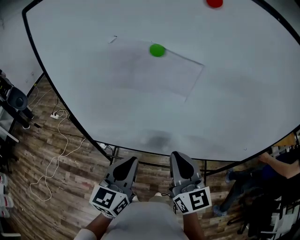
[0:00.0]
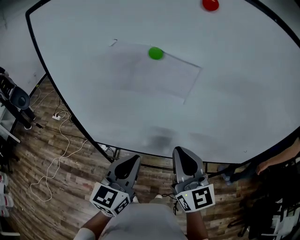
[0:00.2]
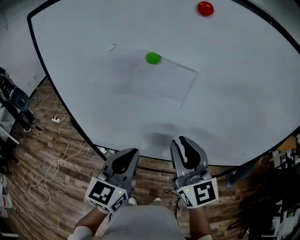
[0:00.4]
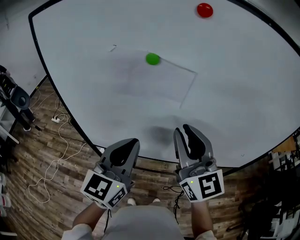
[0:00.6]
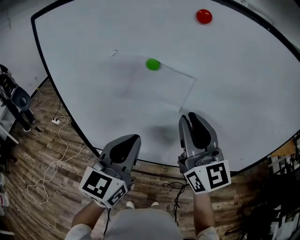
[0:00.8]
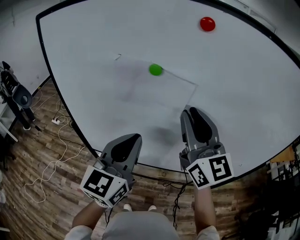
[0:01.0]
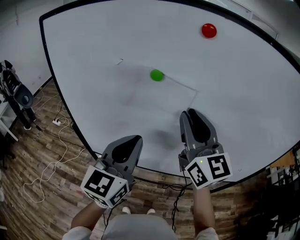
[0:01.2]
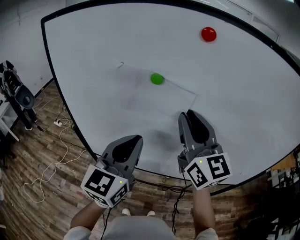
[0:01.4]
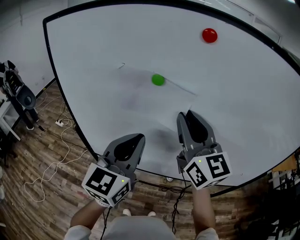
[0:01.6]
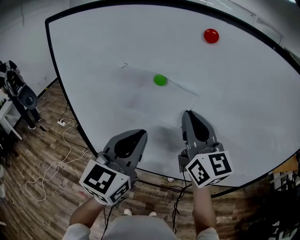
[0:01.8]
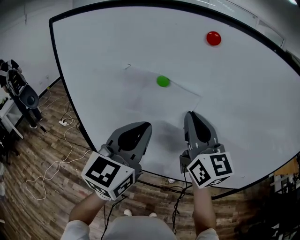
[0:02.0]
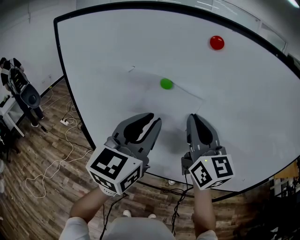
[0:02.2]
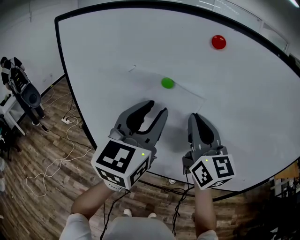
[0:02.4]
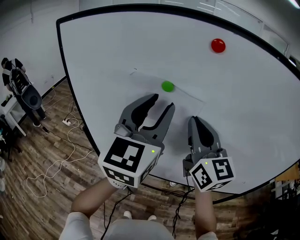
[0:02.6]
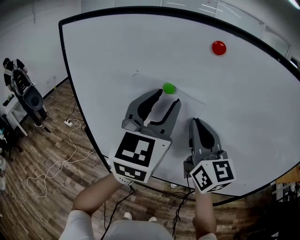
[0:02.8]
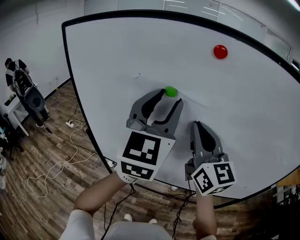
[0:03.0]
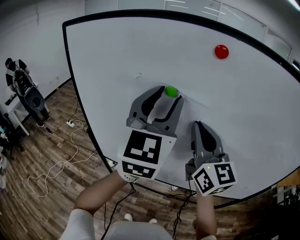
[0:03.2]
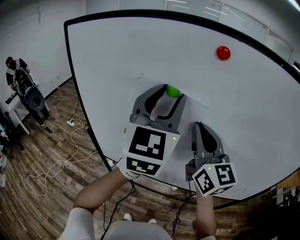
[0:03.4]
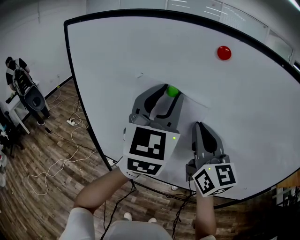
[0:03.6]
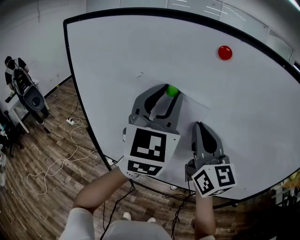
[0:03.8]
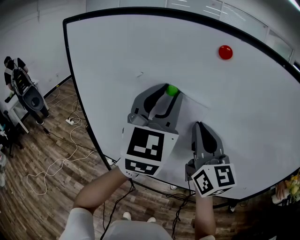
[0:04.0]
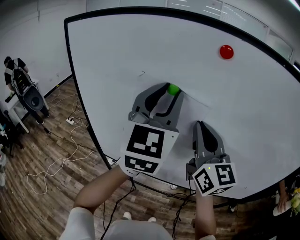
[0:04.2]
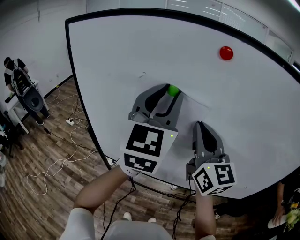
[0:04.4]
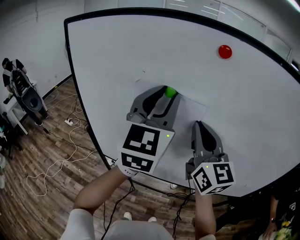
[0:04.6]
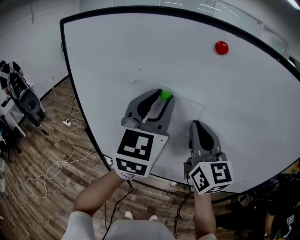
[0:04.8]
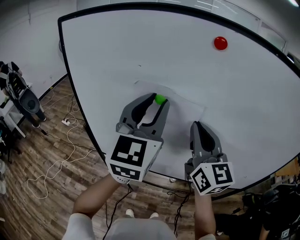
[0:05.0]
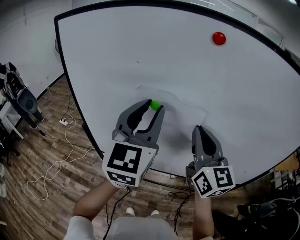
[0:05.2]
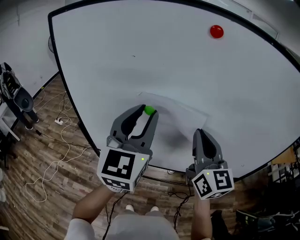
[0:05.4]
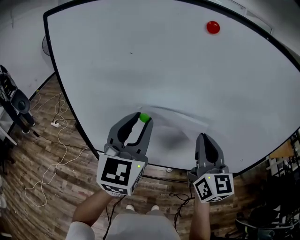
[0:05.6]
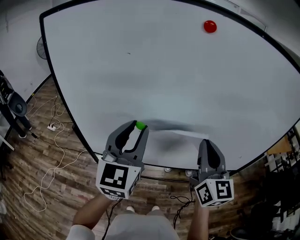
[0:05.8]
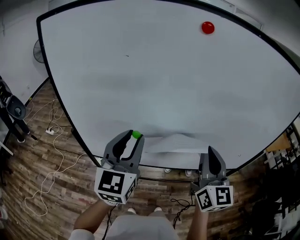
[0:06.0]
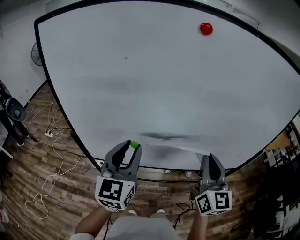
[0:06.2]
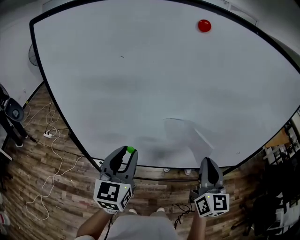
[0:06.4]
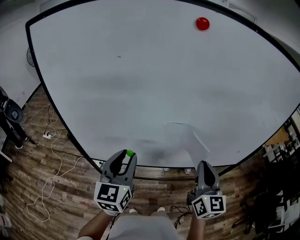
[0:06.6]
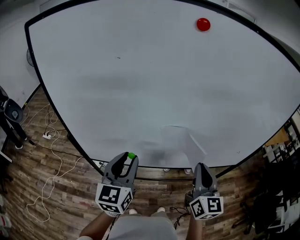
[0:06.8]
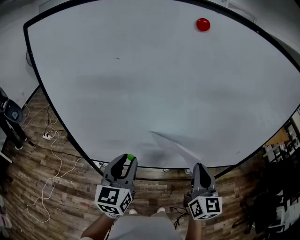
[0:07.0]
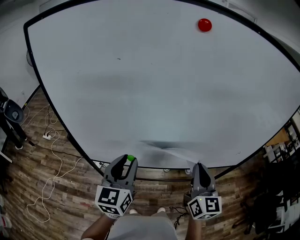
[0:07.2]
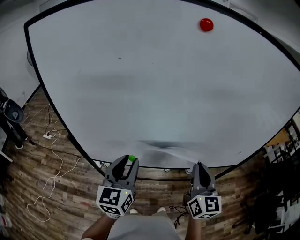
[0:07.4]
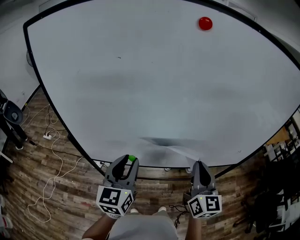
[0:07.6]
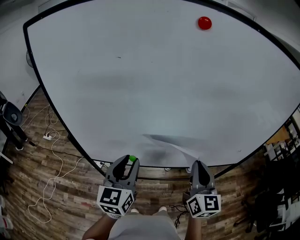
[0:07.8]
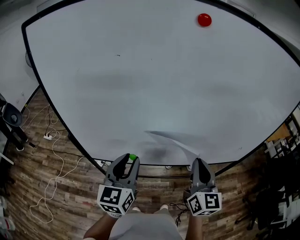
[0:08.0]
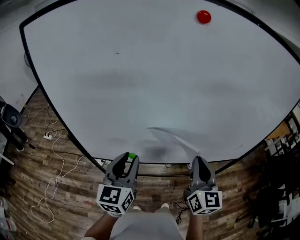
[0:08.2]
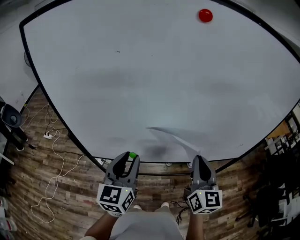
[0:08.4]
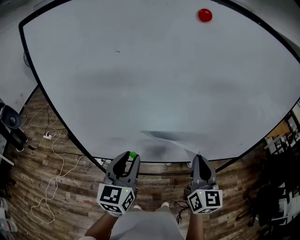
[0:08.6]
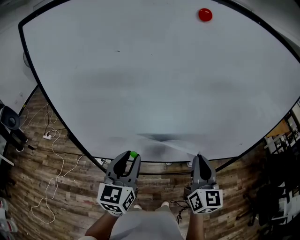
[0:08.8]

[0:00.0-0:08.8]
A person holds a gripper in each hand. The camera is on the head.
0:00.0 to 0:01.4: Both grippers travel together upward and forward, about 15 cm.
0:01.4 to 0:03.0: The left gripper goes roughly 15 cm upward and forward, and opens.
0:03.0 to 0:04.4: The grippers move only a little.
0:04.4 to 0:05.8: The right gripper moves downward, backward and to the right, about 15 cm. Meanwhile the left gripper is displaced downward by some 15 cm.
0:05.8 to 0:07.4: The two grippers go some 10 cm downward.
0:07.4 to 0:08.8: The grippers move only a little.

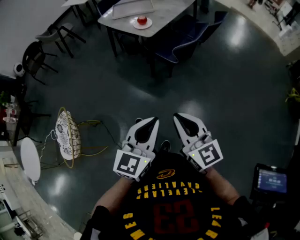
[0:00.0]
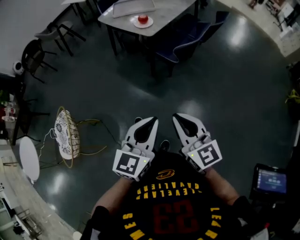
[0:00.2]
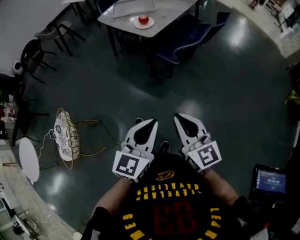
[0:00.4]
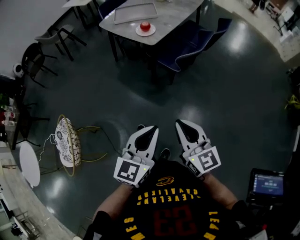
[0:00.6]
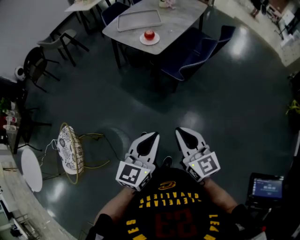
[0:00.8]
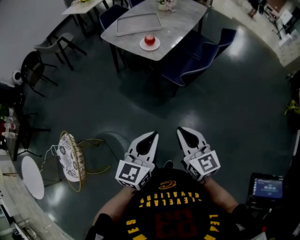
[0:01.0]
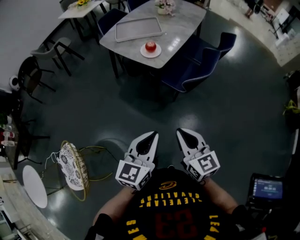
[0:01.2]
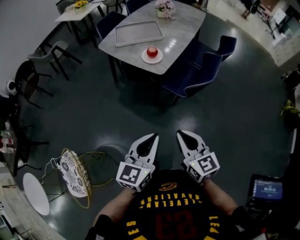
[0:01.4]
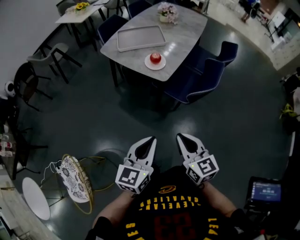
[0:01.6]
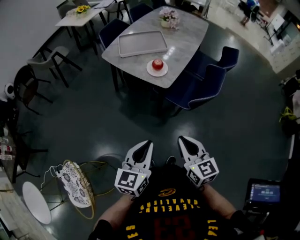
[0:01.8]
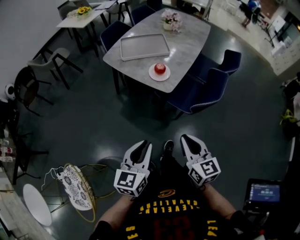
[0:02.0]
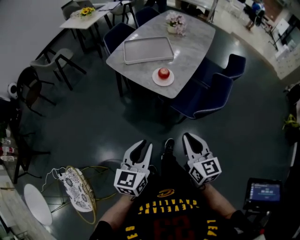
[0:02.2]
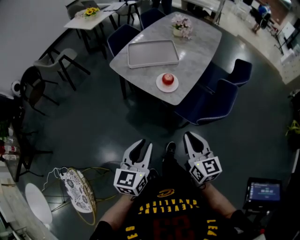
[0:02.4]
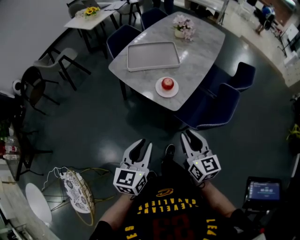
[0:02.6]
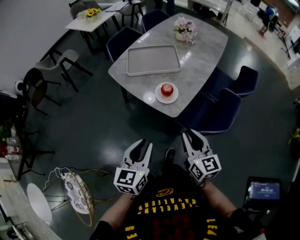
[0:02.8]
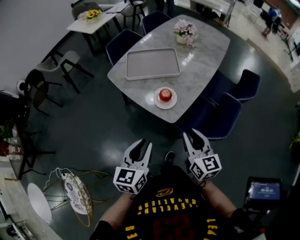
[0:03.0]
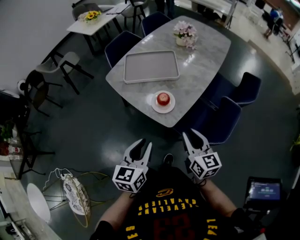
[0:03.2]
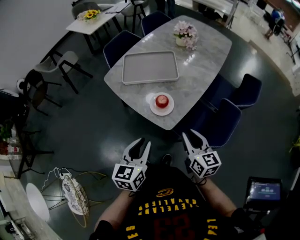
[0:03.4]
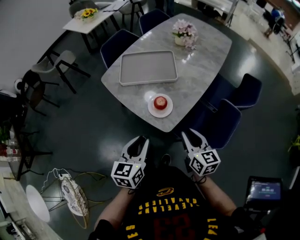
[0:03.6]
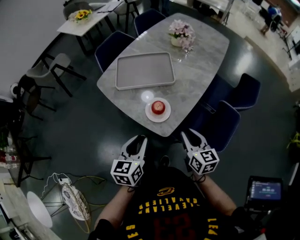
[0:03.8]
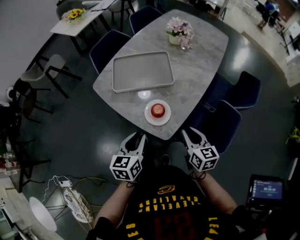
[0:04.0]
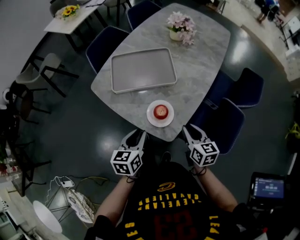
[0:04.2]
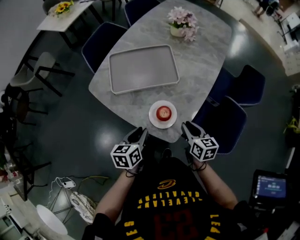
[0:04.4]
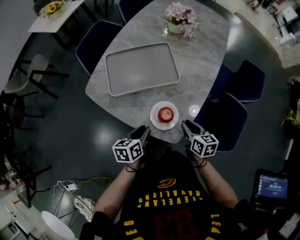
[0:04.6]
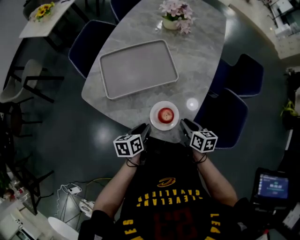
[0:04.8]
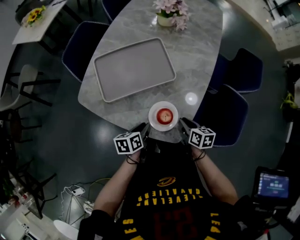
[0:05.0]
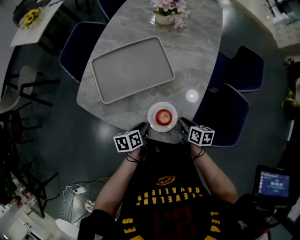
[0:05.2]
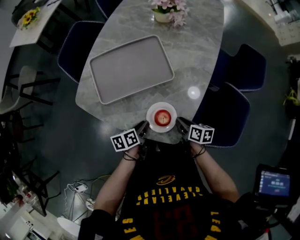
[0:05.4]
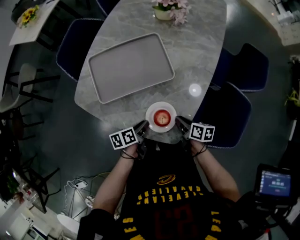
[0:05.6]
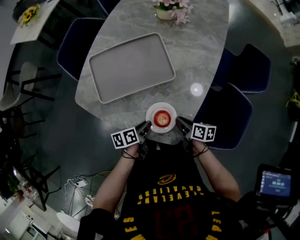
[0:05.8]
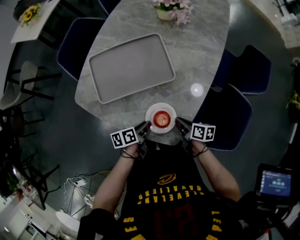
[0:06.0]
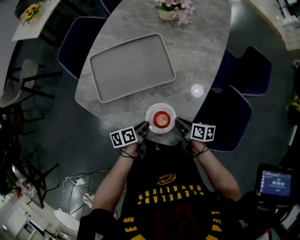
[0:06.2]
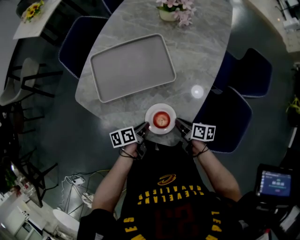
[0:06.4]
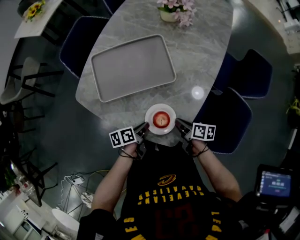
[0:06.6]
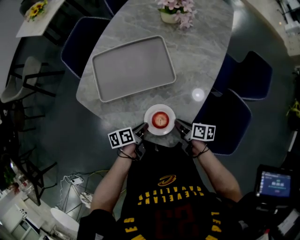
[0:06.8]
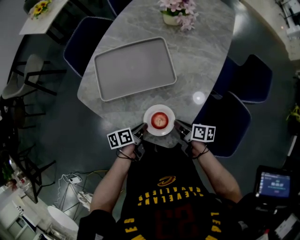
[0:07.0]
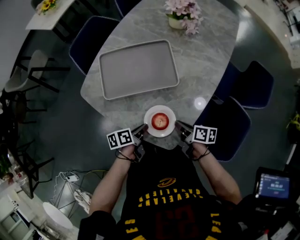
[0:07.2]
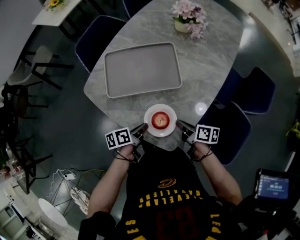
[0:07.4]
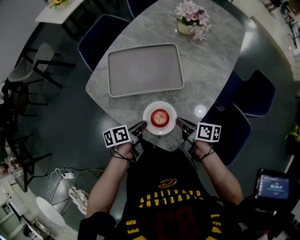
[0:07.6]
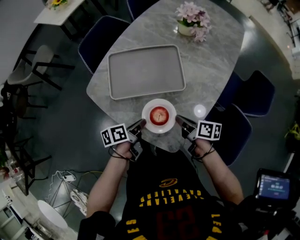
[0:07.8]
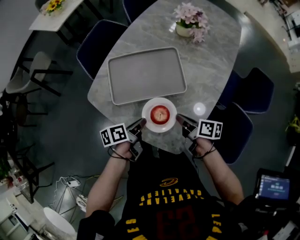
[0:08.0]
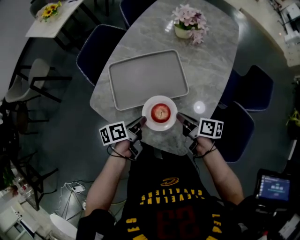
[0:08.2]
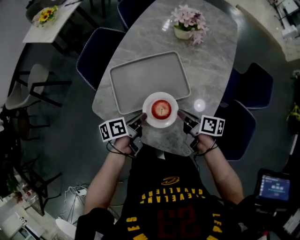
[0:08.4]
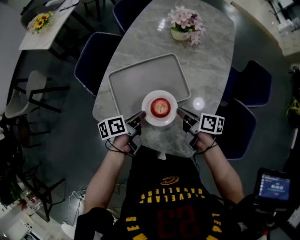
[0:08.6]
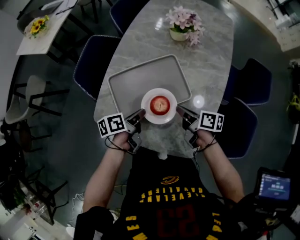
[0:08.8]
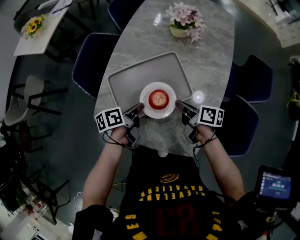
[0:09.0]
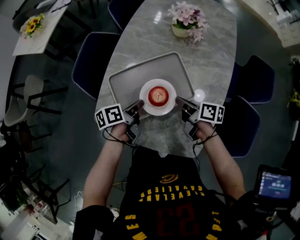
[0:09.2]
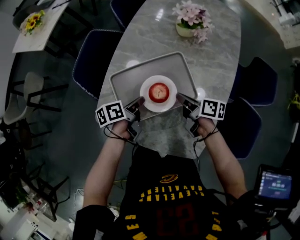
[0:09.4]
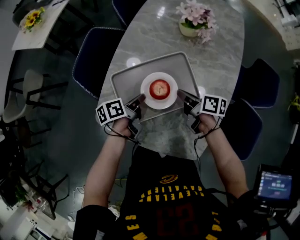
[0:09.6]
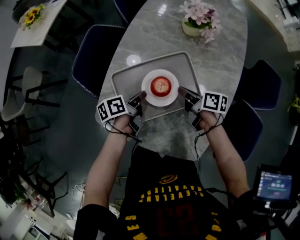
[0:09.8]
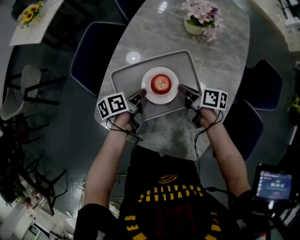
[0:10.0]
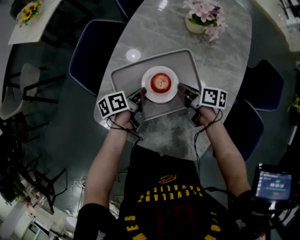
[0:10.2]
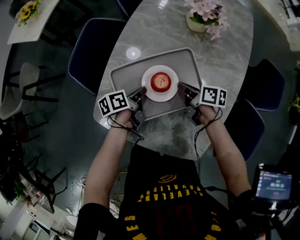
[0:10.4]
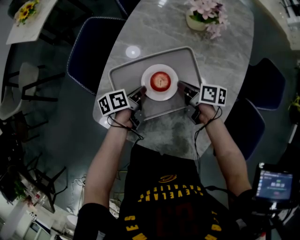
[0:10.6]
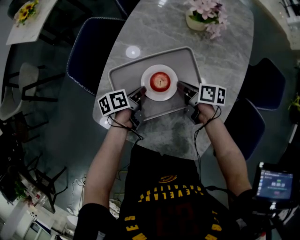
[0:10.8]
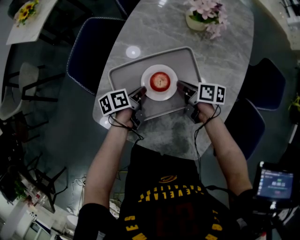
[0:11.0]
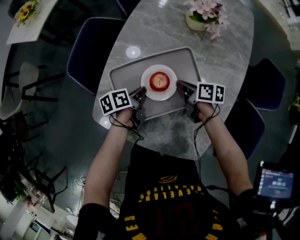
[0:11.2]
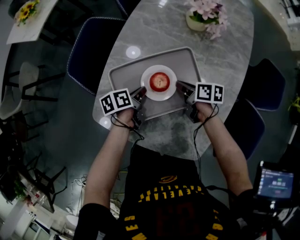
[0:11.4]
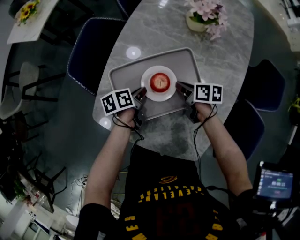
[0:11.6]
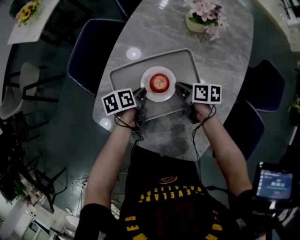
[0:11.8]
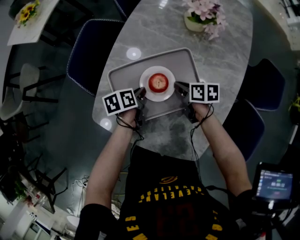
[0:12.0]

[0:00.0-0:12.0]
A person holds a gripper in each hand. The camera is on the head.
0:00.0 to 0:01.6: The right gripper heads forward, covering some 25 cm, while the left gripper is displaced forward and to the left by approximately 30 cm.
0:01.6 to 0:03.0: The two grippers go some 25 cm forward.
0:03.0 to 0:04.4: The grippers both shift forward and downward by about 25 cm. The left gripper changes its angle by about 30 degrees. The right gripper swivels approximately 30 degrees.
0:04.4 to 0:06.0: The left gripper heads downward and forward, covering approximately 15 cm, and swivels approximately 40 degrees; the right gripper goes some 10 cm downward, and changes its angle by some 40 degrees.
0:06.0 to 0:07.6: Both grippers move upward, roughly 5 cm.
0:07.6 to 0:09.0: The grippers both shift forward and to the left by approximately 20 cm.
0:09.0 to 0:10.4: The two grippers go some 10 cm forward and downward.
0:10.4 to 0:12.0: There are only small adjustments of the grippers.

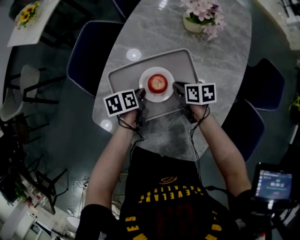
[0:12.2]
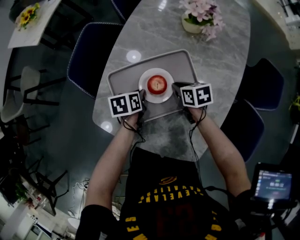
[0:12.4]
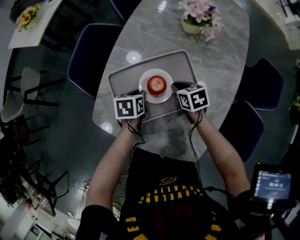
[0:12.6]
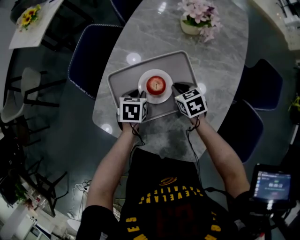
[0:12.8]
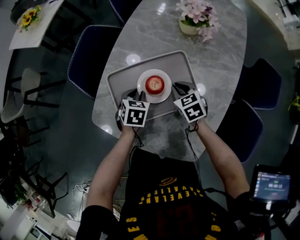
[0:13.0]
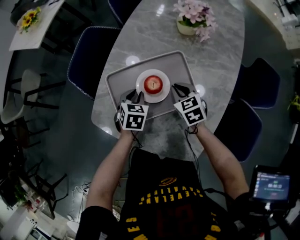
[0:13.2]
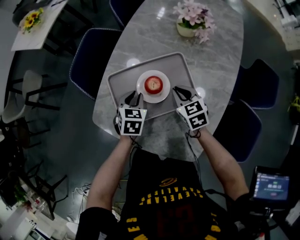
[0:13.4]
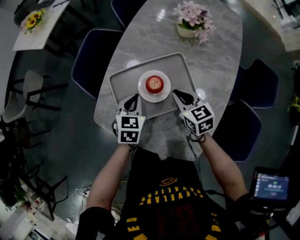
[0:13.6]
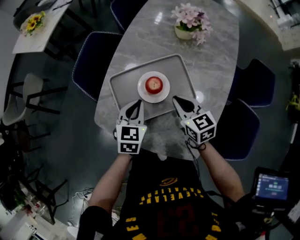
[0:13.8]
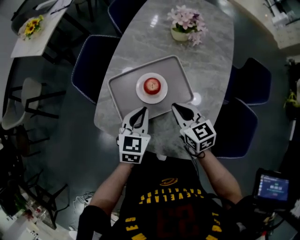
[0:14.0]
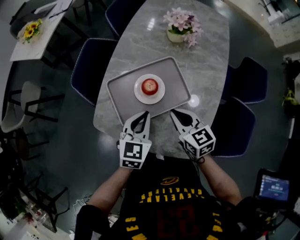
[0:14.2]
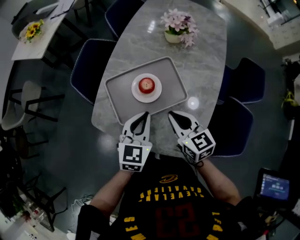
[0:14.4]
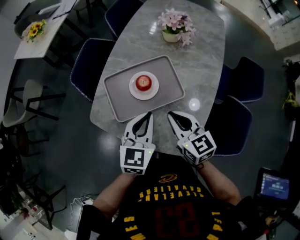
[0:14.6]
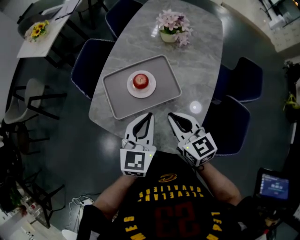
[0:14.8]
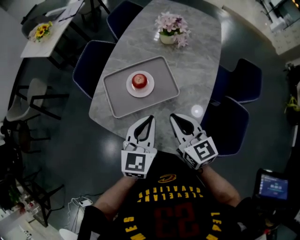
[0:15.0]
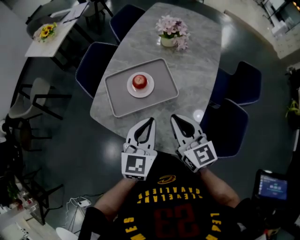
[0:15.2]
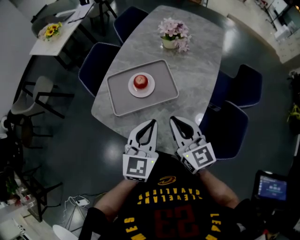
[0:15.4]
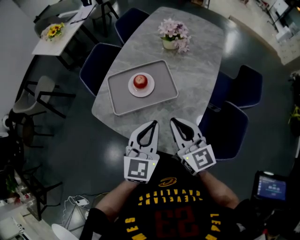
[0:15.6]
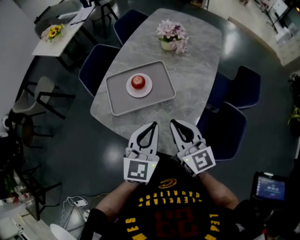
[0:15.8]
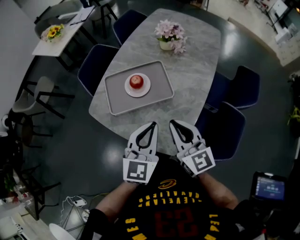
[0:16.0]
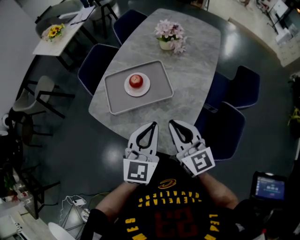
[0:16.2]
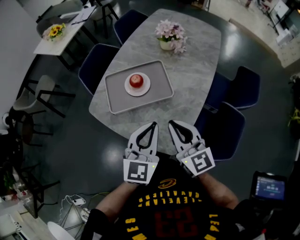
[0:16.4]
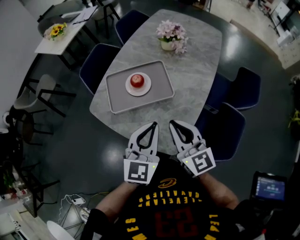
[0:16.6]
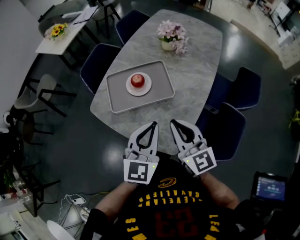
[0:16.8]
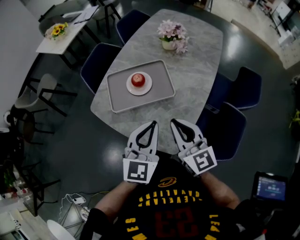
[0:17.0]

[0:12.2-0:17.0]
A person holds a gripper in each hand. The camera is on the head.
0:12.2 to 0:13.8: Both grippers move upward and backward, approximately 15 cm. The left gripper twists roughly 50 degrees clockwise, seen from behind. The right gripper changes its angle by some 40 degrees.
0:13.8 to 0:15.4: The left gripper moves backward, upward and to the right, roughly 25 cm, and turns by about 20 degrees, while the right gripper is displaced backward and upward by some 20 cm, and turns by some 20 degrees.
0:15.4 to 0:17.0: The left gripper shifts by some 5 cm.
